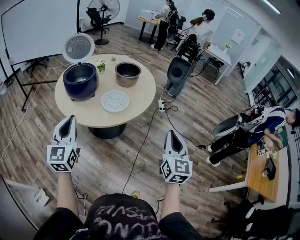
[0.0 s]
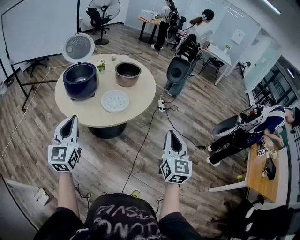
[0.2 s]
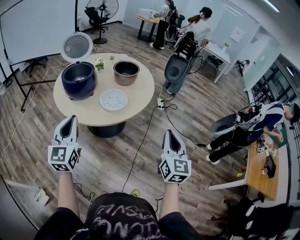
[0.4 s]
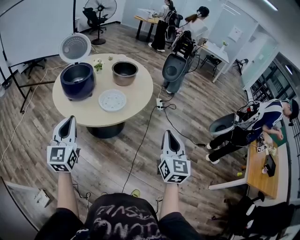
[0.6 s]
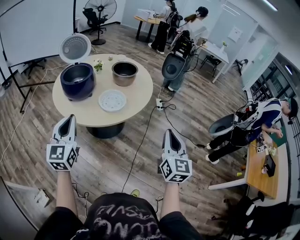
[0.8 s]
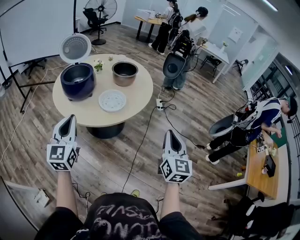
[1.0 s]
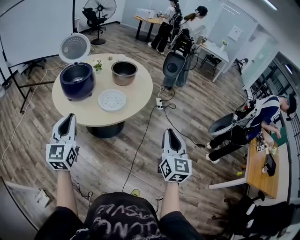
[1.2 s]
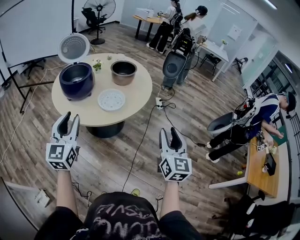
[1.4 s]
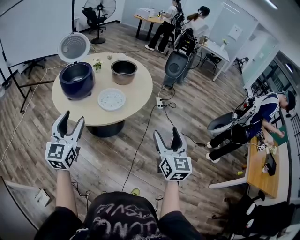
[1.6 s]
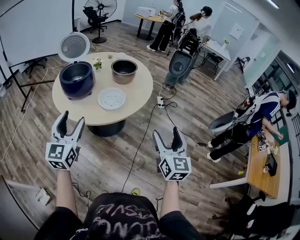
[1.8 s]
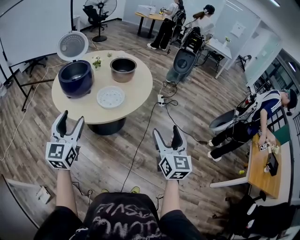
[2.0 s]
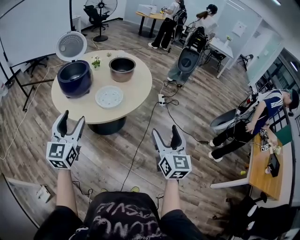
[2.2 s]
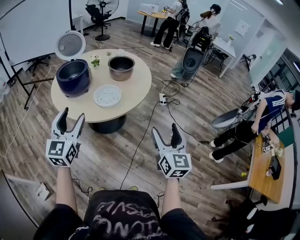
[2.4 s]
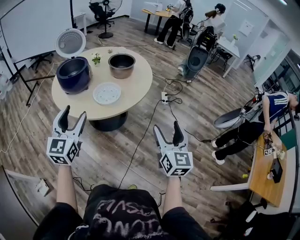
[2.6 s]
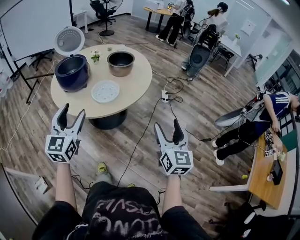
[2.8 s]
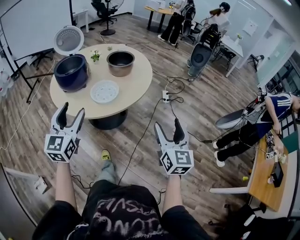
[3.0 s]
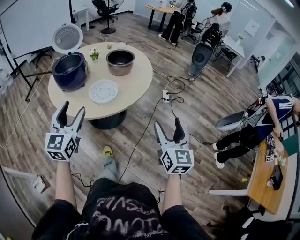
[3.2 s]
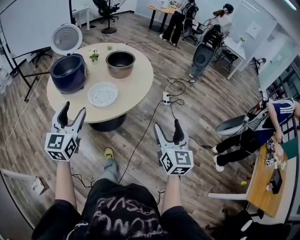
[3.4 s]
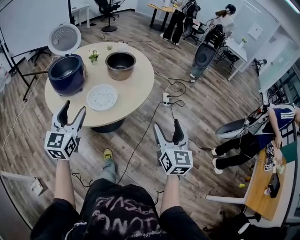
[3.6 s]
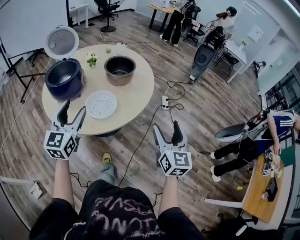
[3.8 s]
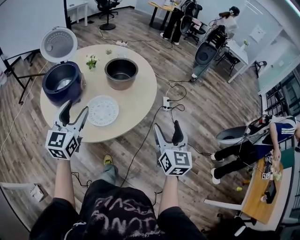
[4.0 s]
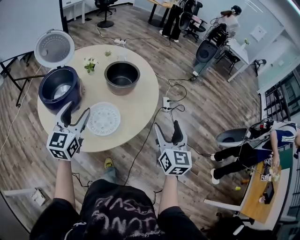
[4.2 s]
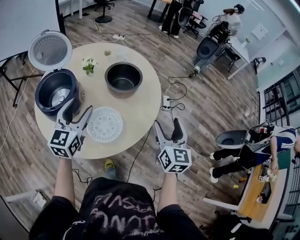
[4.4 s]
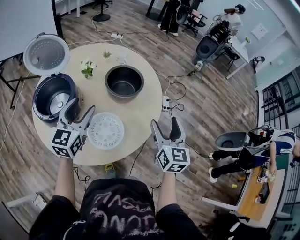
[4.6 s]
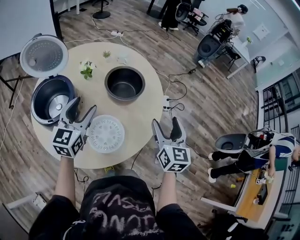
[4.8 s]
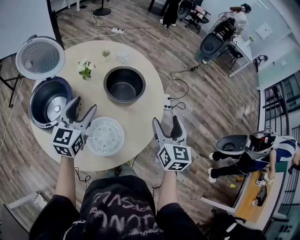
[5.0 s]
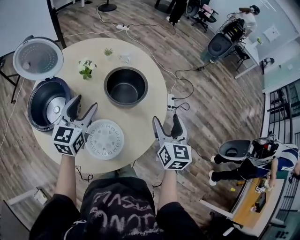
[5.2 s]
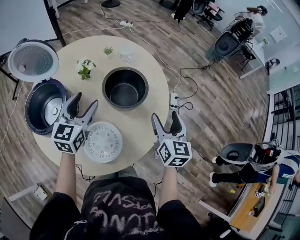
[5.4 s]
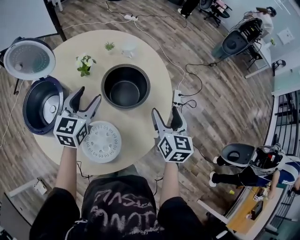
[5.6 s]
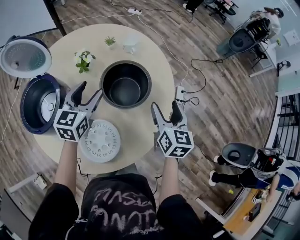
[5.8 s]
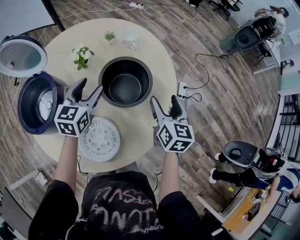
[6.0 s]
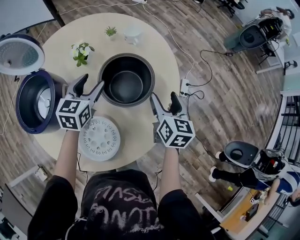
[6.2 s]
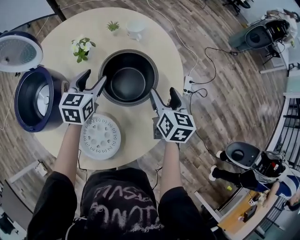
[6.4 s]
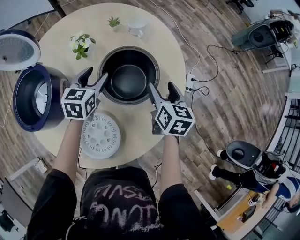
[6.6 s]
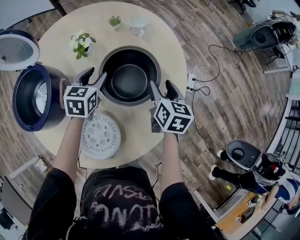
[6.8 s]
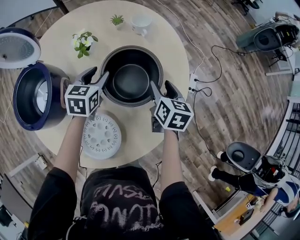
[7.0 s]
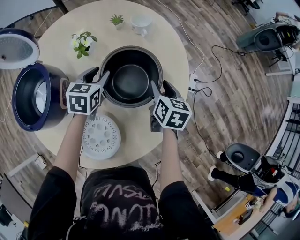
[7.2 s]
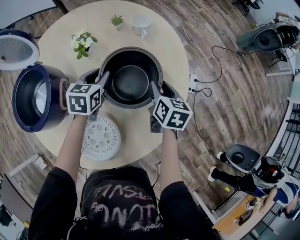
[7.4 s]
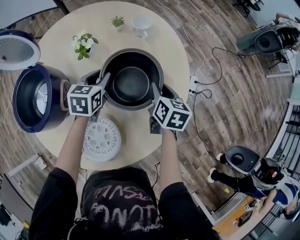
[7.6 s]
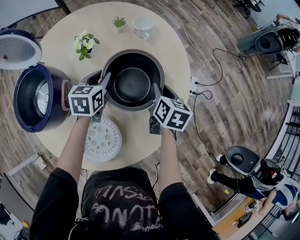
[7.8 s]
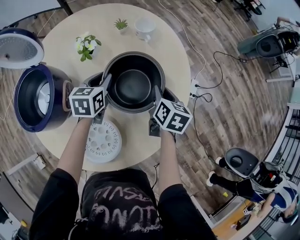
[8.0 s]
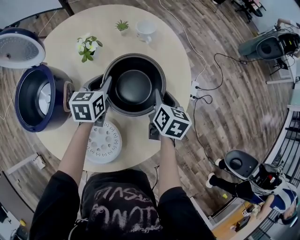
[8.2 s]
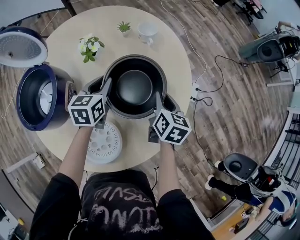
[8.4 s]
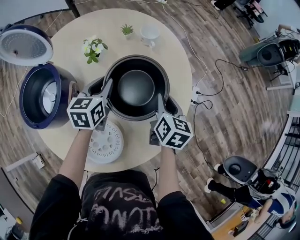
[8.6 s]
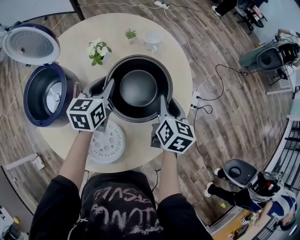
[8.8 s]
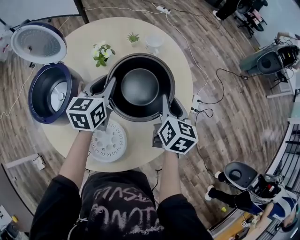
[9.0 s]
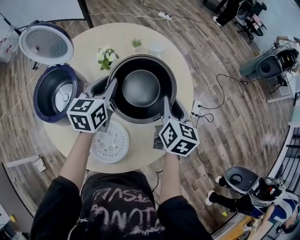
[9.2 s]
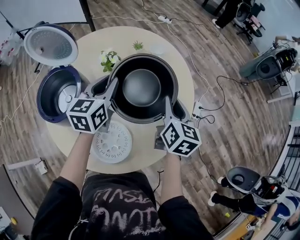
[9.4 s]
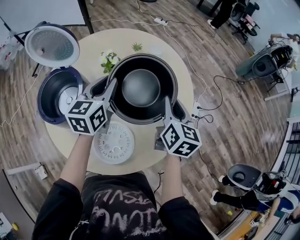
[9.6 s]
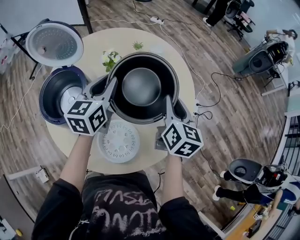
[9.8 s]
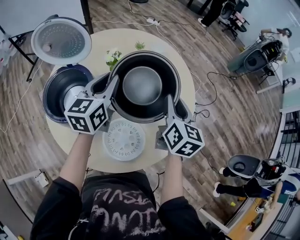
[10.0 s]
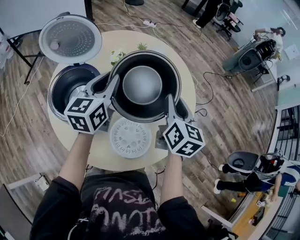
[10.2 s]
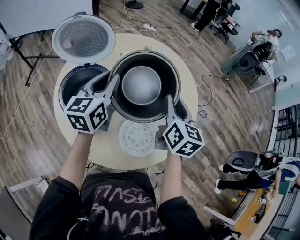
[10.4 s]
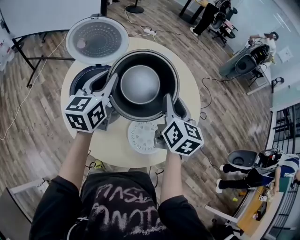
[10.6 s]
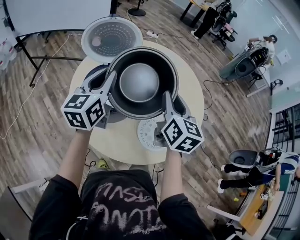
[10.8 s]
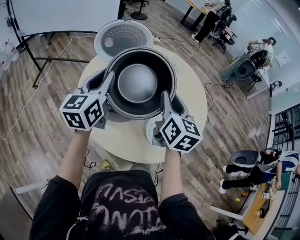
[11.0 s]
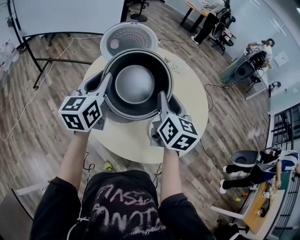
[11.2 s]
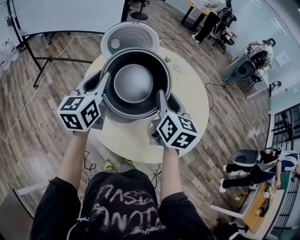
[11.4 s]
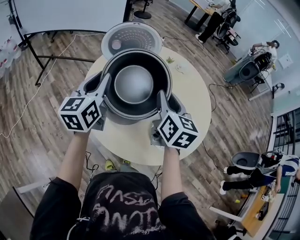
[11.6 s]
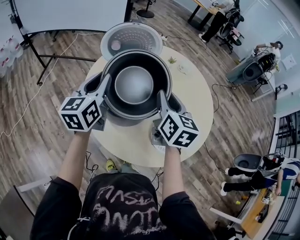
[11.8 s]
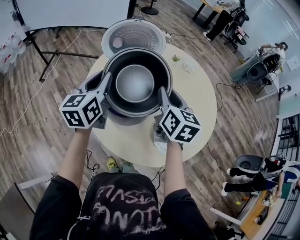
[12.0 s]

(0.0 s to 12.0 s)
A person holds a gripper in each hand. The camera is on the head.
0.0 s - 1.6 s: The right gripper opens; the left gripper opens its fingers.
1.6 s - 3.0 s: The left gripper heads to the right, covering roughly 10 cm. The right gripper travels to the right and forward by approximately 10 cm.
3.0 s - 4.4 s: The grippers both shift forward by approximately 35 cm.
4.4 s - 6.0 s: The two grippers go approximately 30 cm forward and downward.
6.0 s - 7.6 s: The right gripper is displaced downward and forward by approximately 15 cm, and closes, while the left gripper moves downward, approximately 10 cm, and closes its fingers.
7.6 s - 9.0 s: Both grippers move upward, about 10 cm.
9.0 s - 10.4 s: Both grippers move to the left, upward and backward, approximately 20 cm.
10.4 s - 12.0 s: Both grippers travel together to the left, some 20 cm.

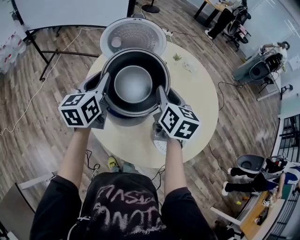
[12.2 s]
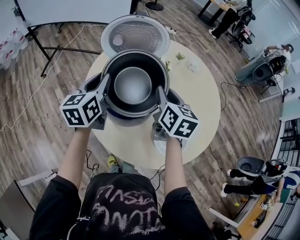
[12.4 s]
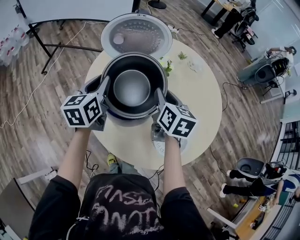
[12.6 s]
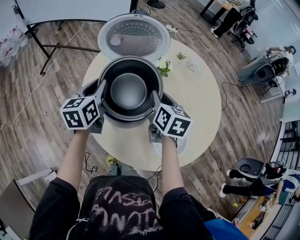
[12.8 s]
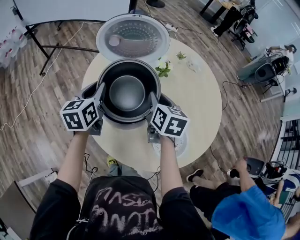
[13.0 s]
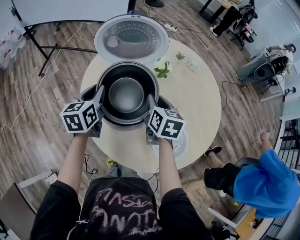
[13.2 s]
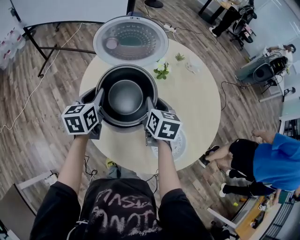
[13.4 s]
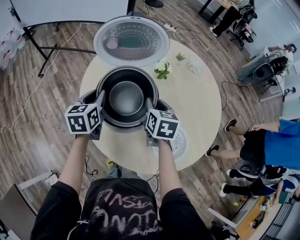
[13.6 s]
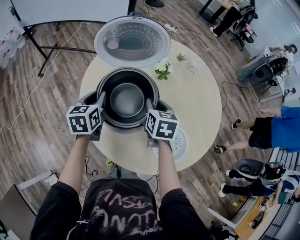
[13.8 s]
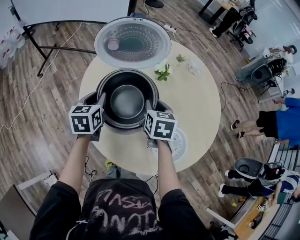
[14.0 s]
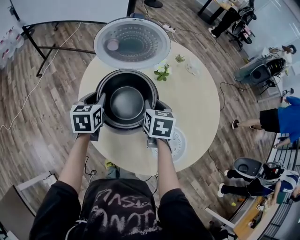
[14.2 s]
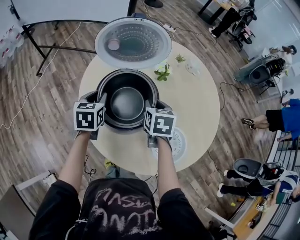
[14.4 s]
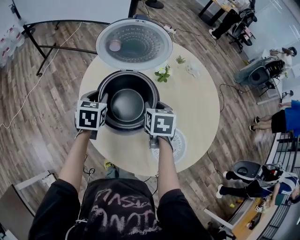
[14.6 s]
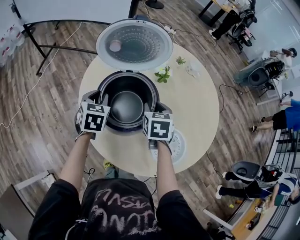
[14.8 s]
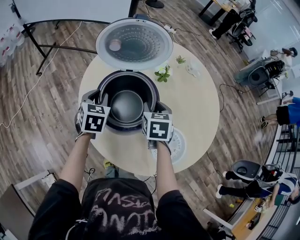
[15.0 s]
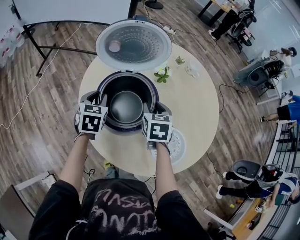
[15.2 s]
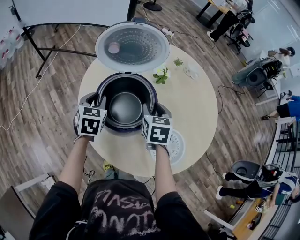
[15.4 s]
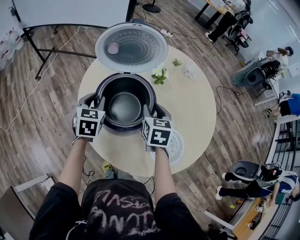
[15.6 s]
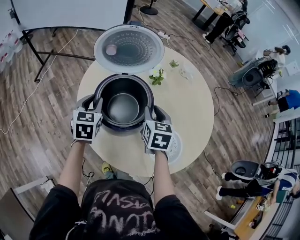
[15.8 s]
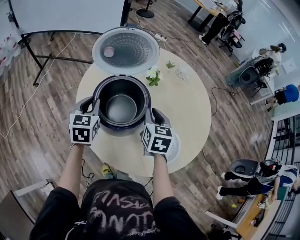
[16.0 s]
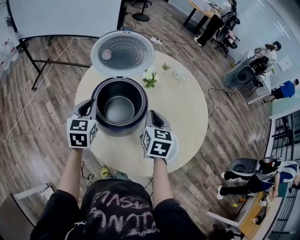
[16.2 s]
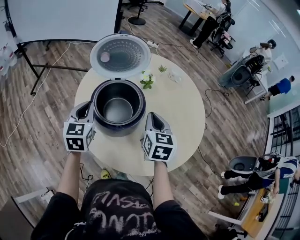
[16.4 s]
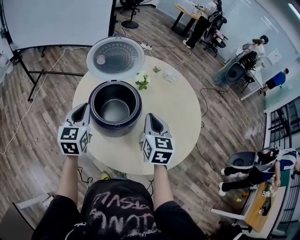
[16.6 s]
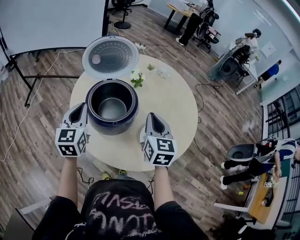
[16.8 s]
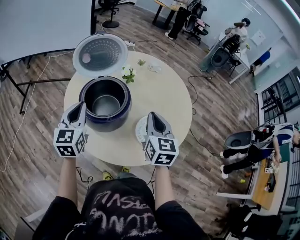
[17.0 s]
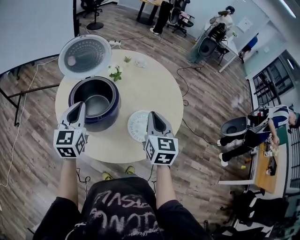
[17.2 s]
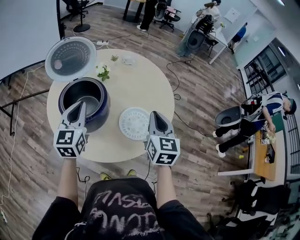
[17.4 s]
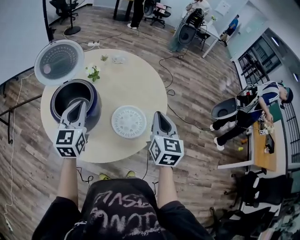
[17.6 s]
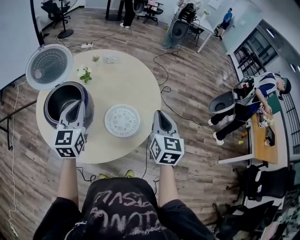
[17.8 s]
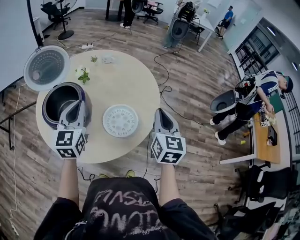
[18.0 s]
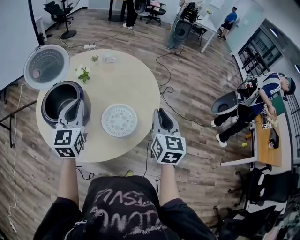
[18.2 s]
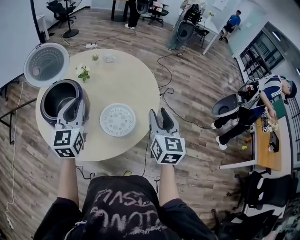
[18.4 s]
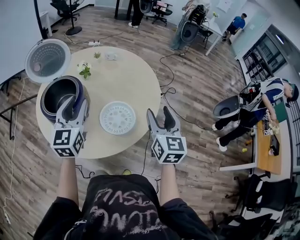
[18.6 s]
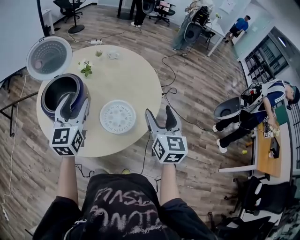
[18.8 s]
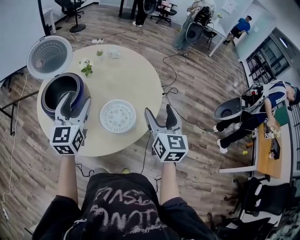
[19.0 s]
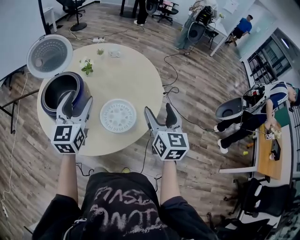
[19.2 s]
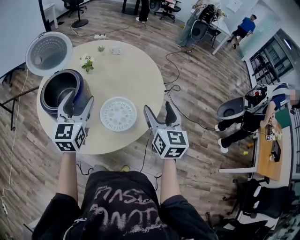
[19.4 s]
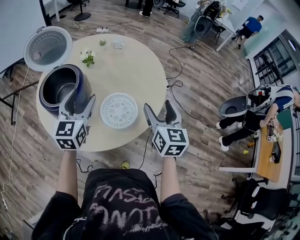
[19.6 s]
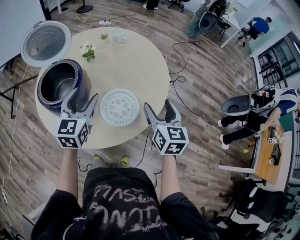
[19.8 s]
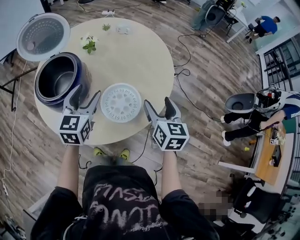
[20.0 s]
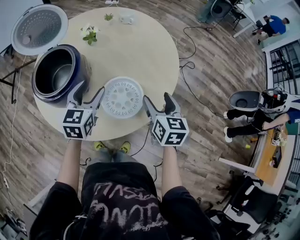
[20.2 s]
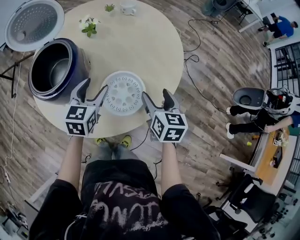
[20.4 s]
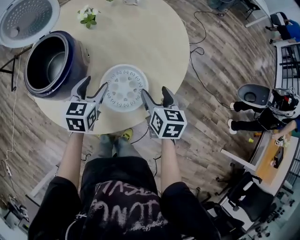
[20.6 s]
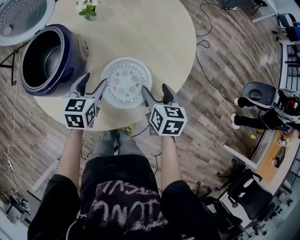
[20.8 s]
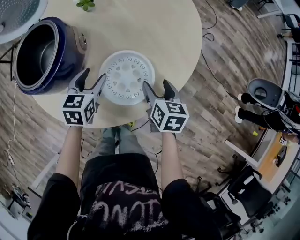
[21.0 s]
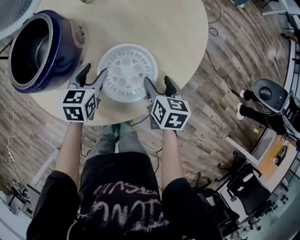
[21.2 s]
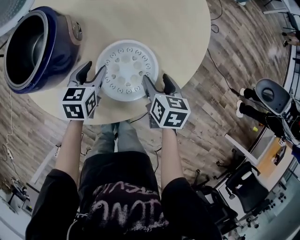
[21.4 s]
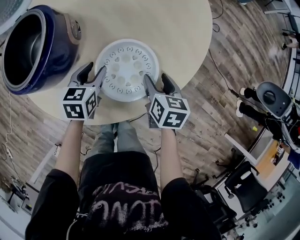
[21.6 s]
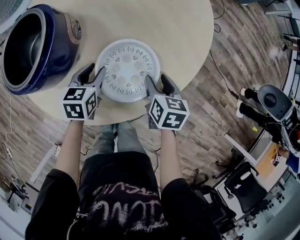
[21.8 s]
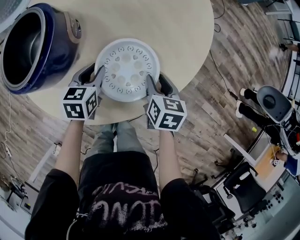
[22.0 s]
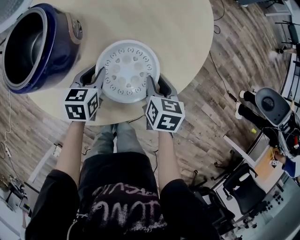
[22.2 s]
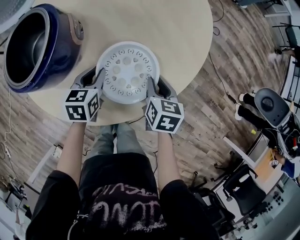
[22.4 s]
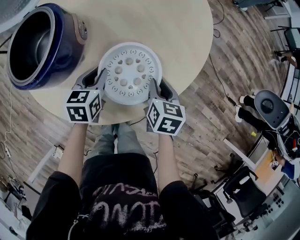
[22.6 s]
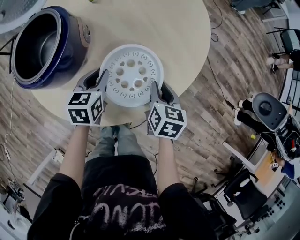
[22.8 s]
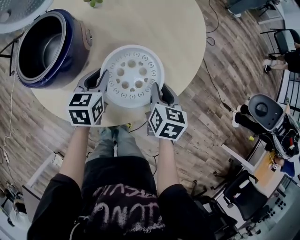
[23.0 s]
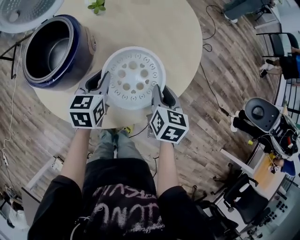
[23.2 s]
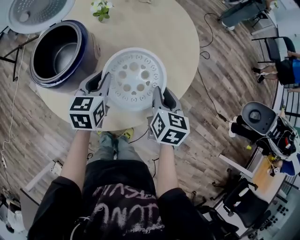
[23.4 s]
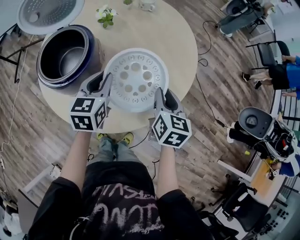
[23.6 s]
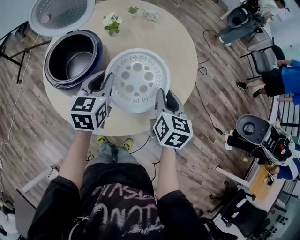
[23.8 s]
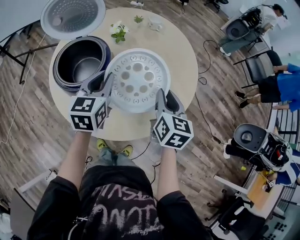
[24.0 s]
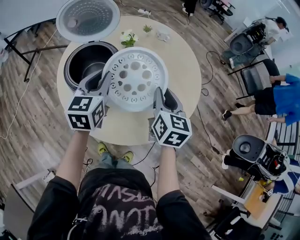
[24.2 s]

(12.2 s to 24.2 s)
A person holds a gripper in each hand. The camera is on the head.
12.2 s - 13.8 s: The two grippers go about 15 cm downward. The right gripper swivels about 20 degrees. Meanwhile the left gripper changes its angle by some 20 degrees.
13.8 s - 15.2 s: The left gripper rotates approximately 20 degrees.
15.2 s - 16.6 s: Both grippers travel together upward and backward, some 15 cm. The right gripper swivels about 20 degrees, and closes up; the left gripper rotates roughly 30 degrees, and closes its fingers.
16.6 s - 18.2 s: The left gripper moves some 25 cm, and changes its angle by about 30 degrees. Meanwhile the right gripper moves some 30 cm, and turns by approximately 30 degrees.
18.2 s - 19.8 s: Both grippers move downward, about 5 cm. The left gripper opens, while the right gripper opens up.
19.8 s - 21.2 s: Both grippers move downward, approximately 25 cm. The right gripper swivels roughly 30 degrees, while the left gripper turns by roughly 30 degrees.
21.2 s - 22.6 s: The left gripper closes its fingers, while the right gripper closes its fingers.
22.6 s - 24.2 s: The two grippers go some 25 cm upward. The left gripper turns by approximately 30 degrees, while the right gripper turns by about 30 degrees.
